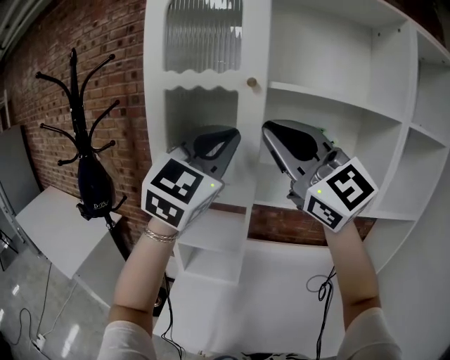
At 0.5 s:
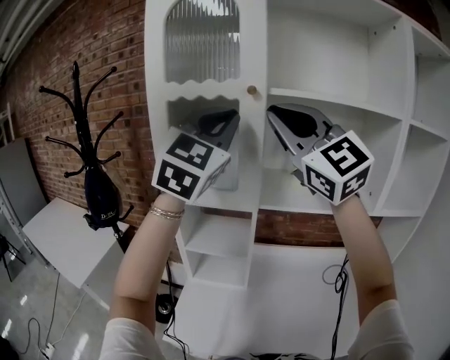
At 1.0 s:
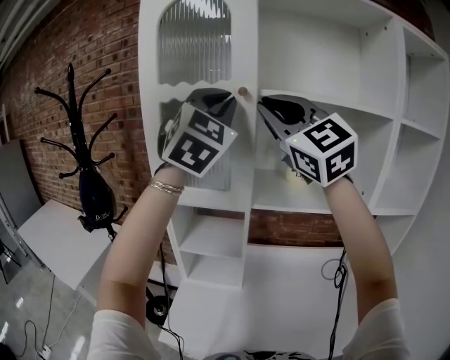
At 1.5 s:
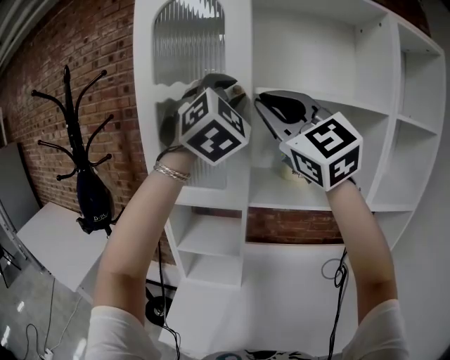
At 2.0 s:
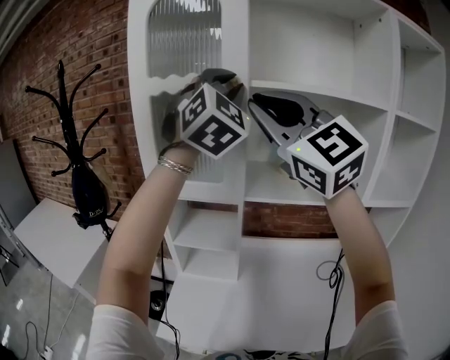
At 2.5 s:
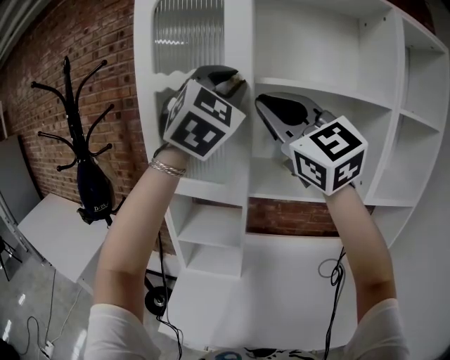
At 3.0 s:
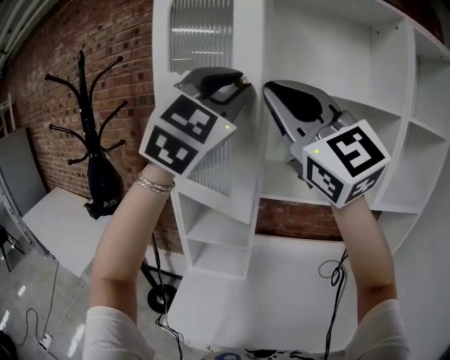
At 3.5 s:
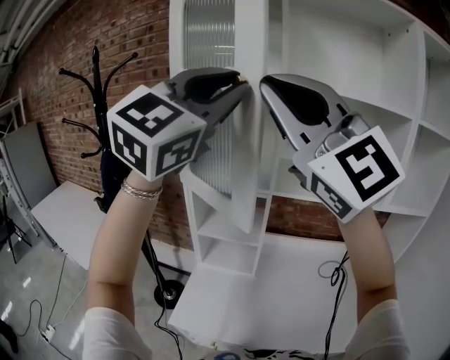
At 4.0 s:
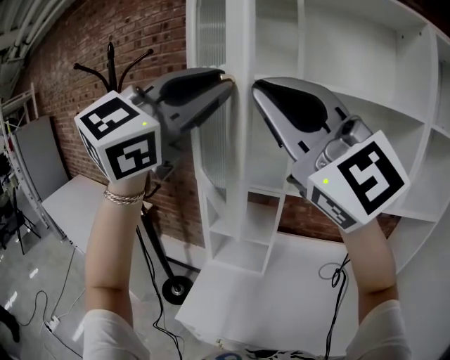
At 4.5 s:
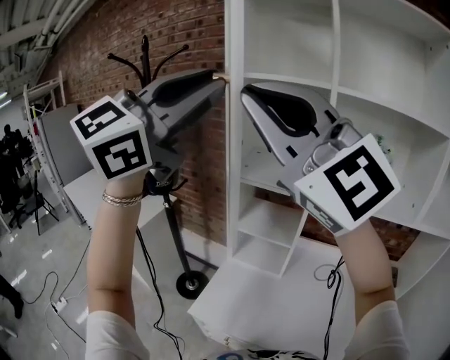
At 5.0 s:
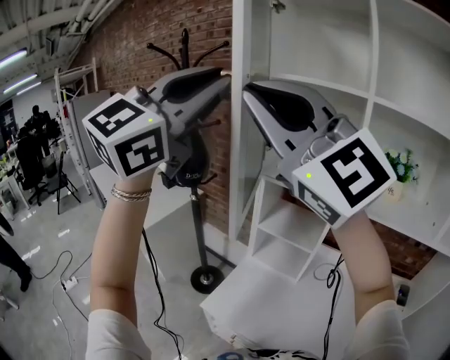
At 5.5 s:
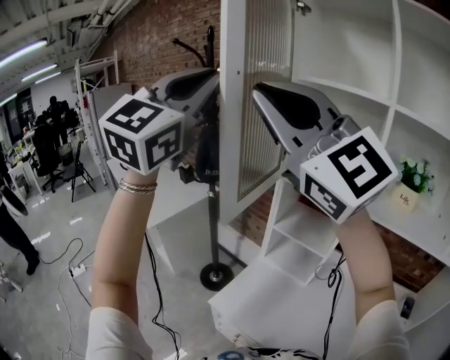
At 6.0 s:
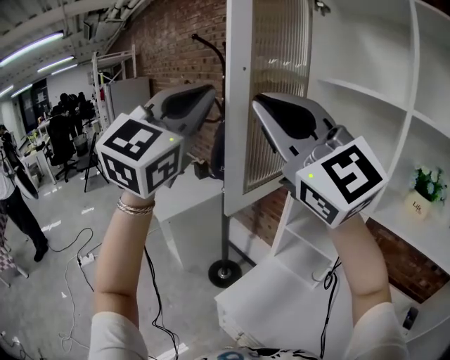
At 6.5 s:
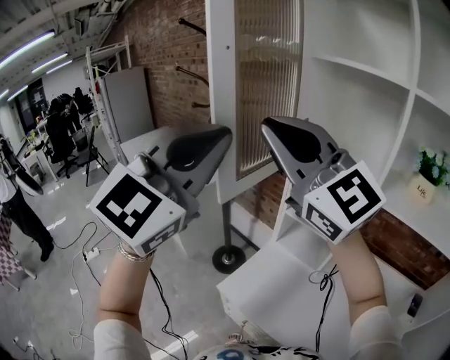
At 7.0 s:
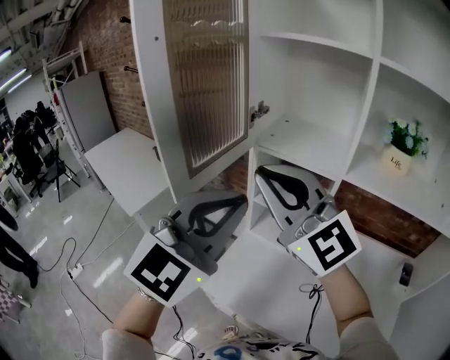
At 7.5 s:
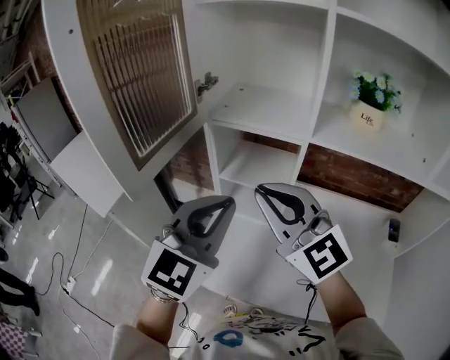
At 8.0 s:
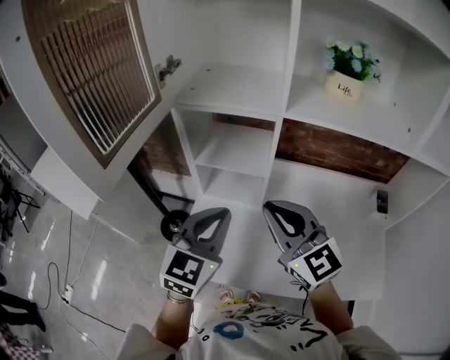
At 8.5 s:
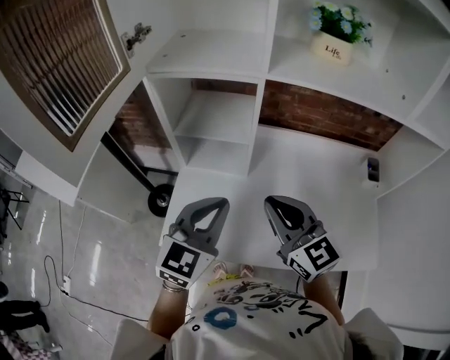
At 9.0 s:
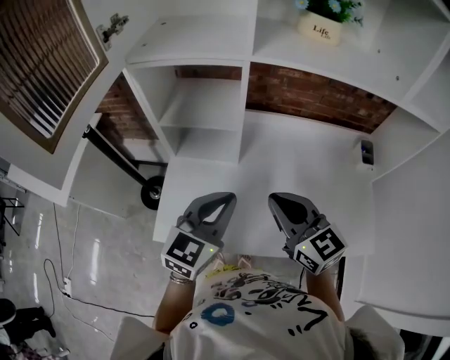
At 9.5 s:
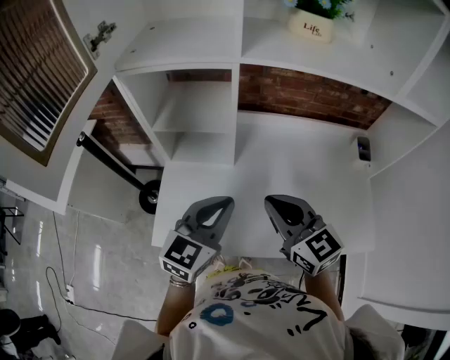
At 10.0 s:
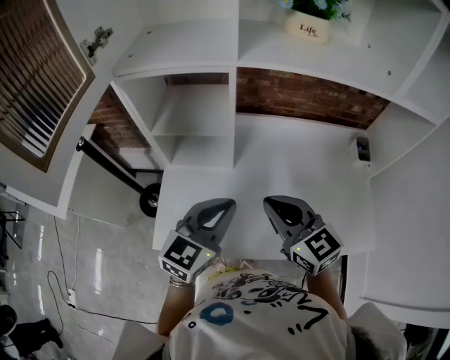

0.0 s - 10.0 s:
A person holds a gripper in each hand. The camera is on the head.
0.0 s - 2.0 s: The left gripper shifts roughly 10 cm upward and forward, and swivels some 30 degrees.
2.0 s - 4.0 s: The grippers both shift backward and to the left by roughly 20 cm. The left gripper changes its angle by some 40 degrees.
4.0 s - 6.0 s: The right gripper changes place by roughly 20 cm, and turns by approximately 30 degrees, while the left gripper moves about 25 cm, and turns by approximately 50 degrees.
6.0 s - 8.0 s: Both grippers move downward, approximately 35 cm. The left gripper points its fingers about 30 degrees further downward. Meanwhile the right gripper rotates about 50 degrees.
8.0 s - 10.0 s: The left gripper heads to the right and downward, covering about 10 cm, and changes its angle by approximately 20 degrees. Meanwhile the right gripper heads downward and to the right, covering some 15 cm.

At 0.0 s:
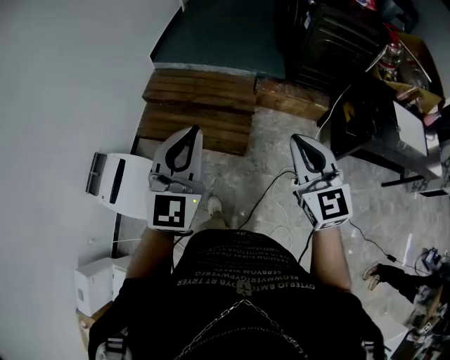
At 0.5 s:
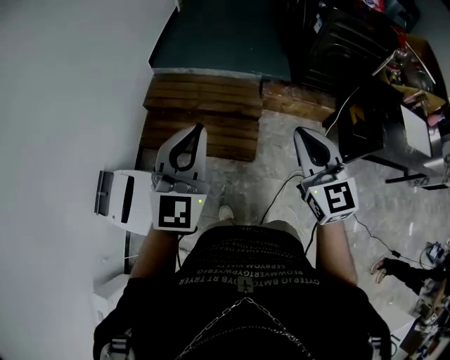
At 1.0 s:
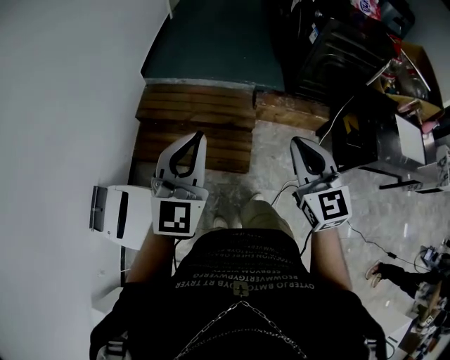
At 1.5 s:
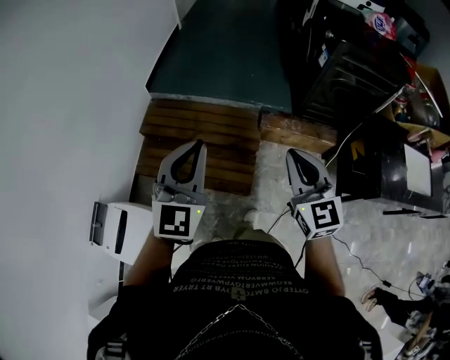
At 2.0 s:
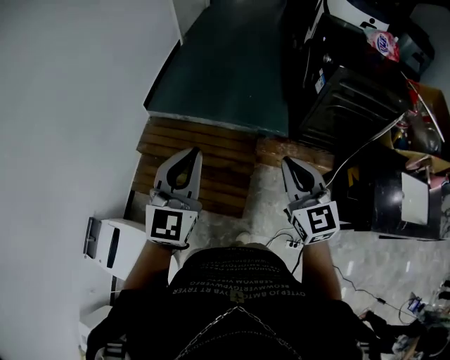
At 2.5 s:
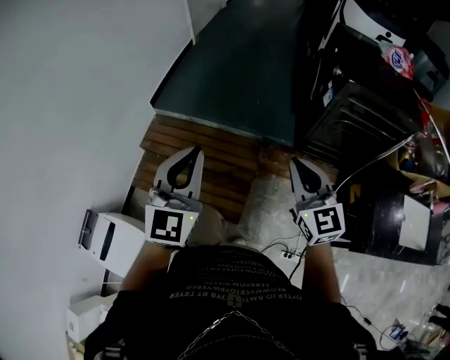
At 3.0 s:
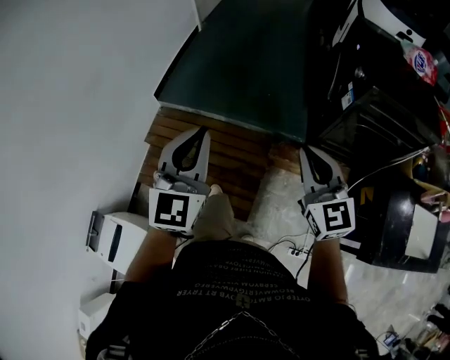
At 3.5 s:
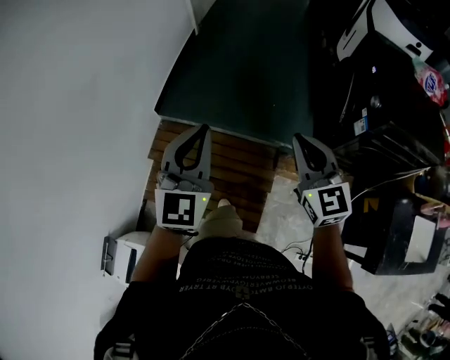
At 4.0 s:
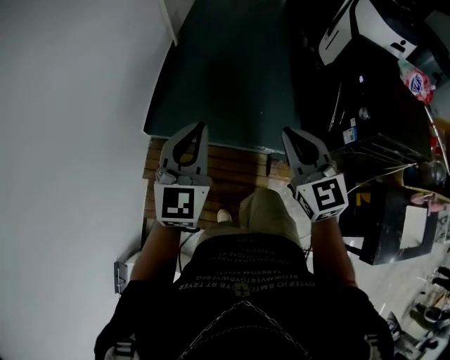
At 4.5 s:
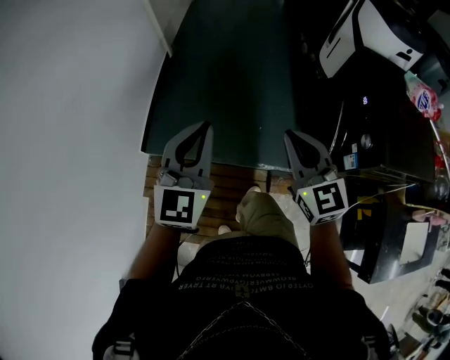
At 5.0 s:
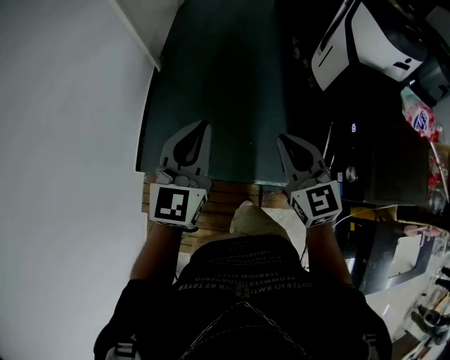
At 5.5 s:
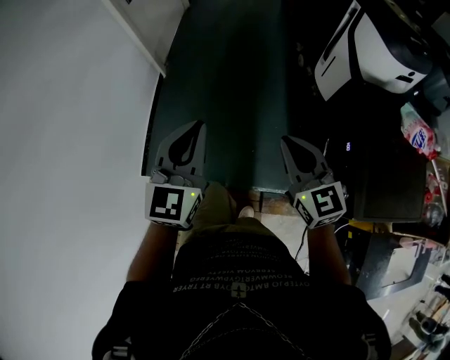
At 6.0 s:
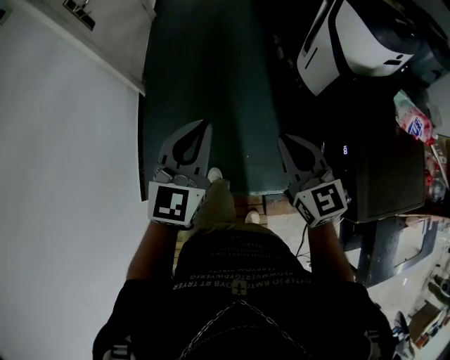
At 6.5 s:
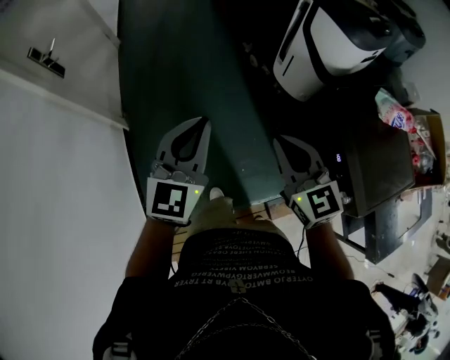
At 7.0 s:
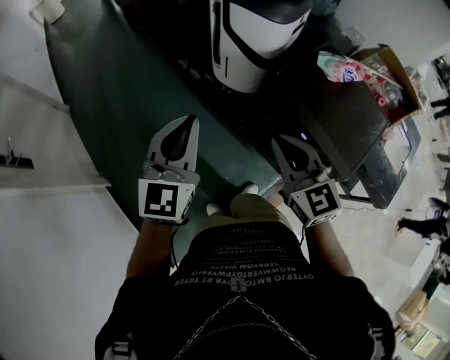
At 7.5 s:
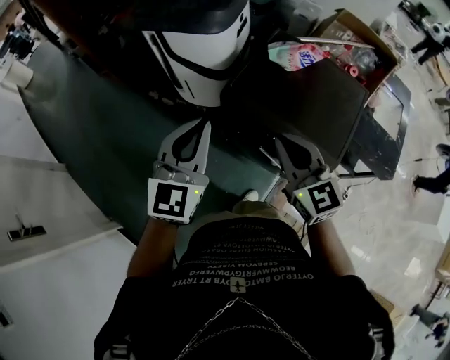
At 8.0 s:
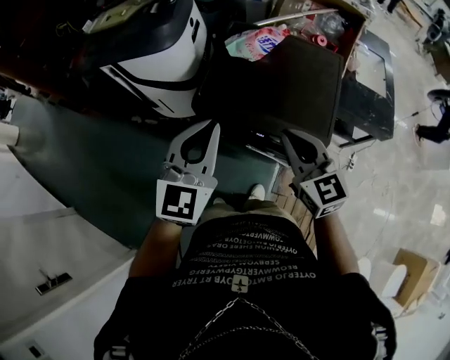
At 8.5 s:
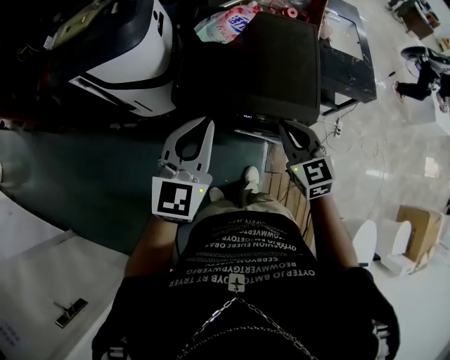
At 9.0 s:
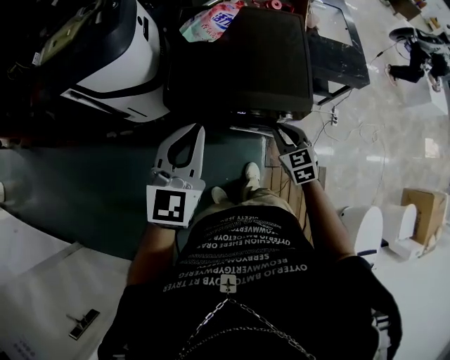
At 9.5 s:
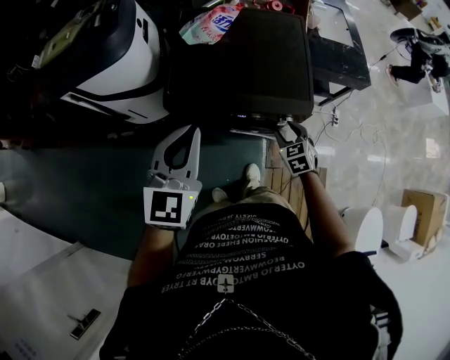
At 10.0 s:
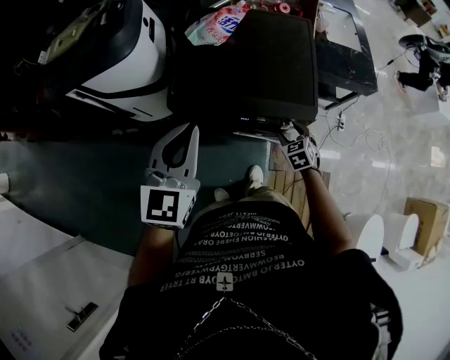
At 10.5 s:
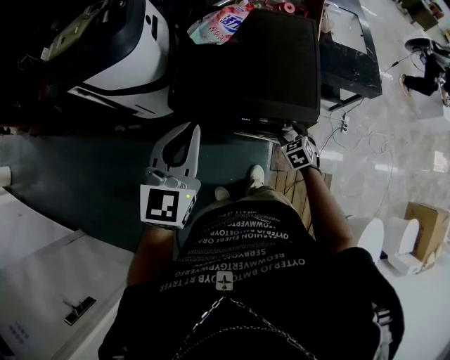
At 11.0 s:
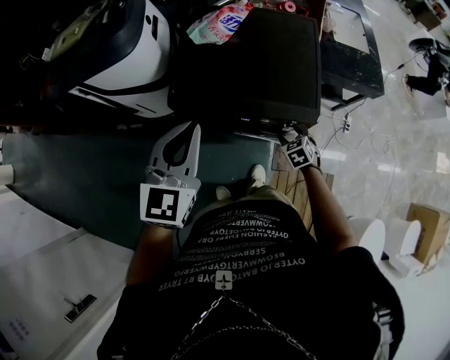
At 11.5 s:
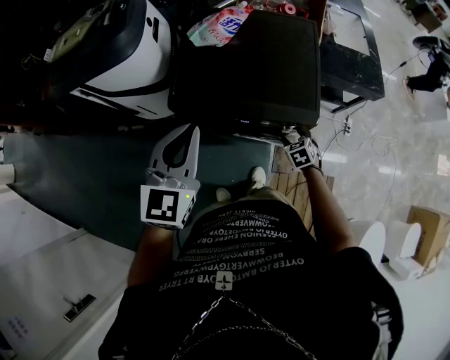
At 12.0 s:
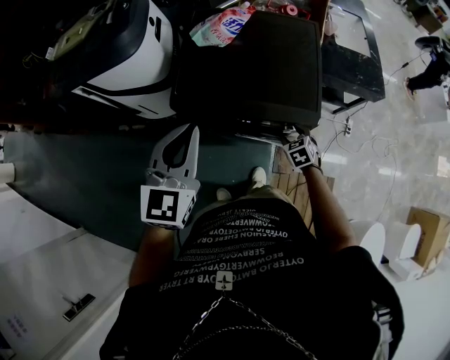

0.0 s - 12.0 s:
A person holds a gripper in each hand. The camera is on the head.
0.0 s - 2.0 s: The pair of grippers is taken forward, about 40 cm.
2.0 s - 4.0 s: The two grippers travel together, forward, about 50 cm.
4.0 s - 6.0 s: Both grippers are carried forward and to the right, roughly 50 cm.
6.0 s - 8.0 s: The right gripper shifts by approximately 30 cm, and turns by approximately 70 degrees, while the left gripper ends up about 40 cm from where it was, and changes its angle by about 70 degrees.
8.0 s - 10.0 s: The right gripper moves downward, some 30 cm, tilts its fingers some 40 degrees downward, and opens its fingers.
10.0 s - 12.0 s: The grippers make only small movements.

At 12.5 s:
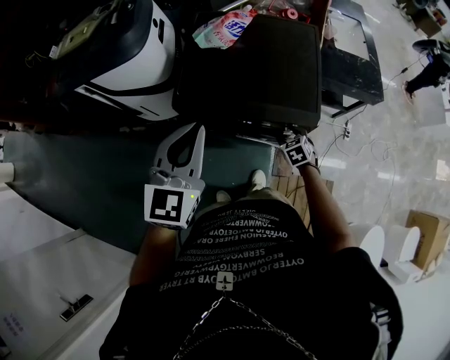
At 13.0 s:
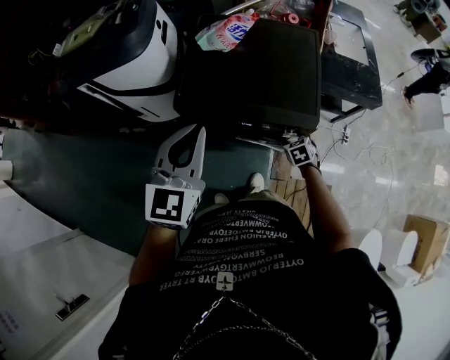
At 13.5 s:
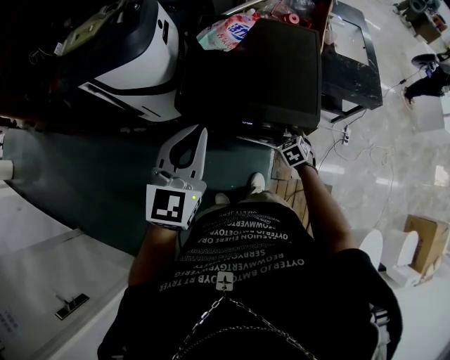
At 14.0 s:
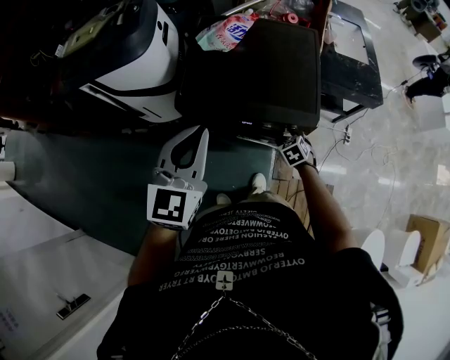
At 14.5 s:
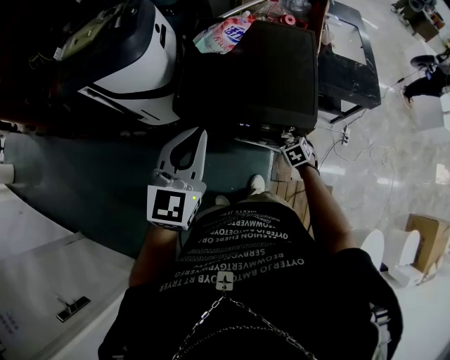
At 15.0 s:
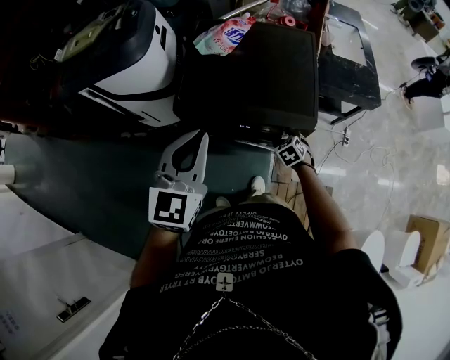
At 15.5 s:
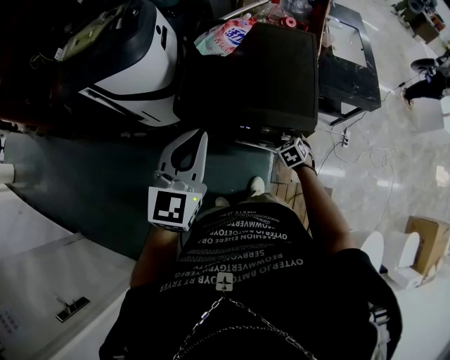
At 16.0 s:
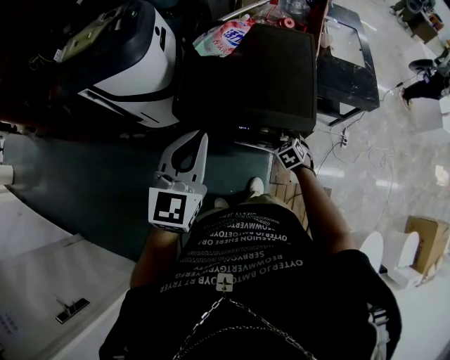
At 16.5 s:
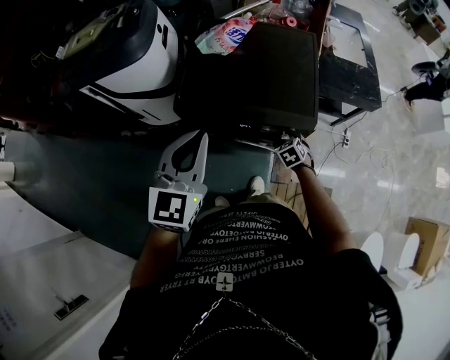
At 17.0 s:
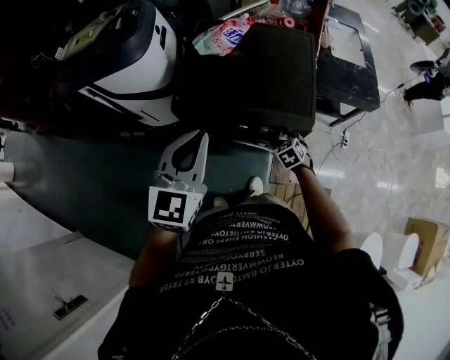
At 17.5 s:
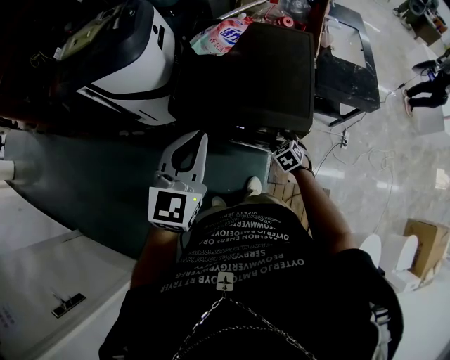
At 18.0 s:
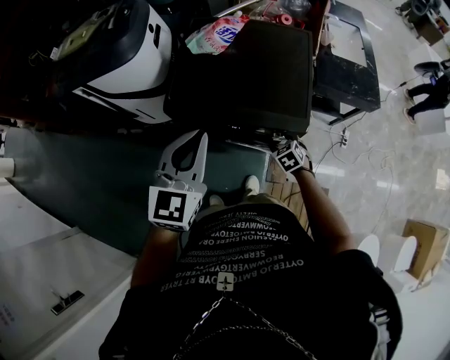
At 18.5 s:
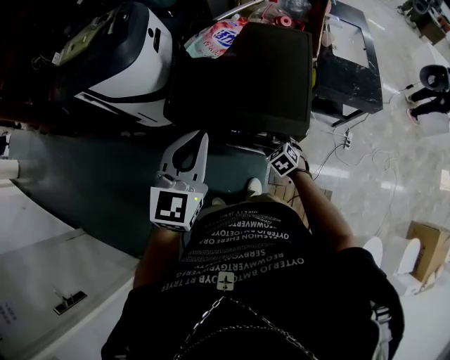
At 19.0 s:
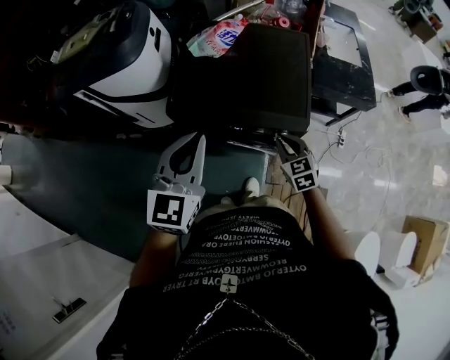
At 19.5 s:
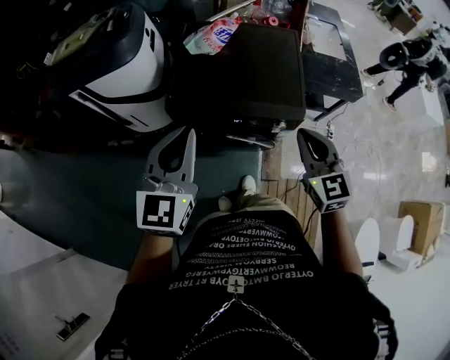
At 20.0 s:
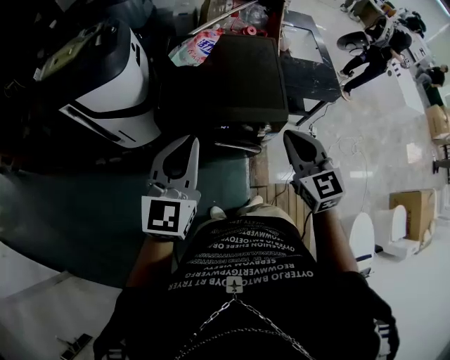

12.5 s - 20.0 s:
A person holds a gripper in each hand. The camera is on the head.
12.5 s - 16.5 s: There are only small adjustments of the grippers.
16.5 s - 18.0 s: The left gripper ends up approximately 5 cm from where it was.
18.0 s - 20.0 s: The right gripper moves upward, about 35 cm, points its fingers approximately 40 degrees further upward, and closes. The left gripper travels to the left and backward by approximately 10 cm.
